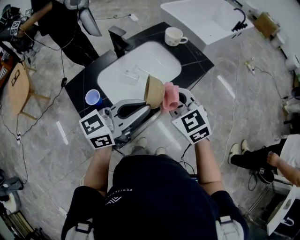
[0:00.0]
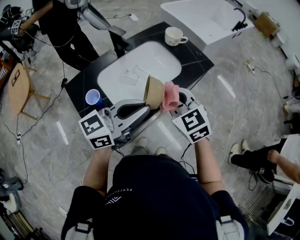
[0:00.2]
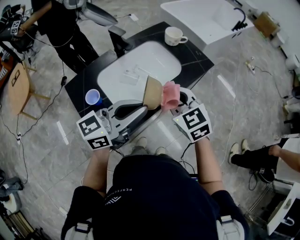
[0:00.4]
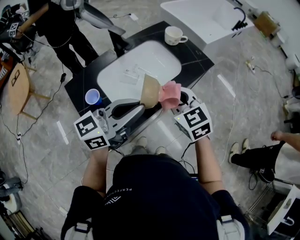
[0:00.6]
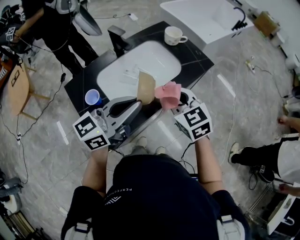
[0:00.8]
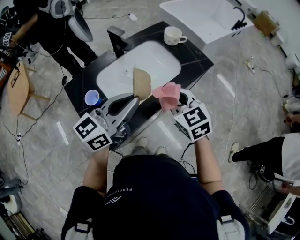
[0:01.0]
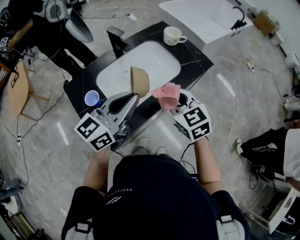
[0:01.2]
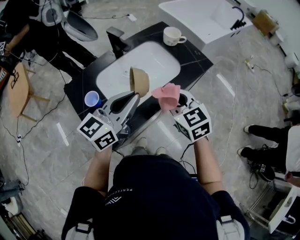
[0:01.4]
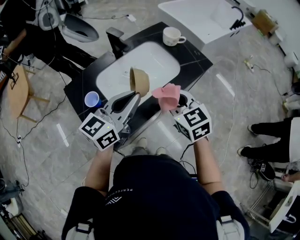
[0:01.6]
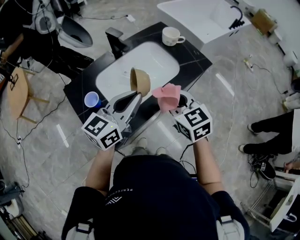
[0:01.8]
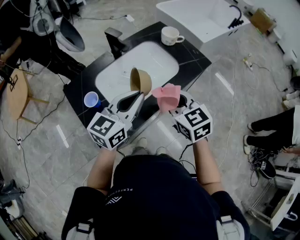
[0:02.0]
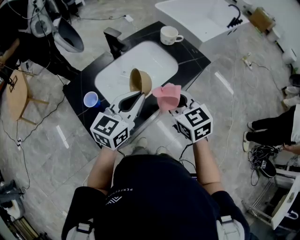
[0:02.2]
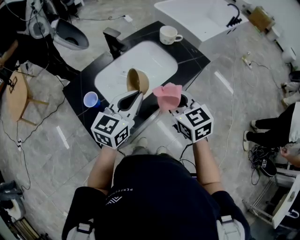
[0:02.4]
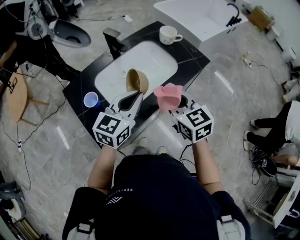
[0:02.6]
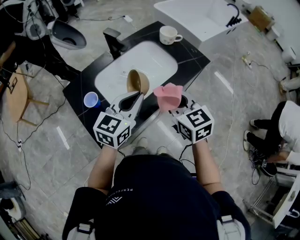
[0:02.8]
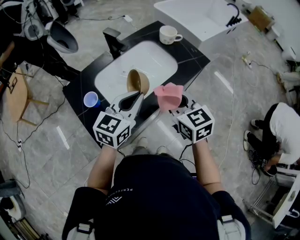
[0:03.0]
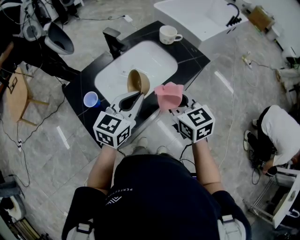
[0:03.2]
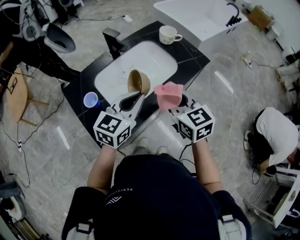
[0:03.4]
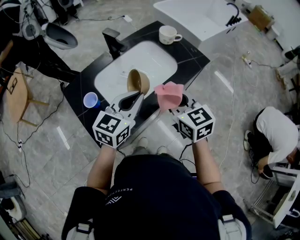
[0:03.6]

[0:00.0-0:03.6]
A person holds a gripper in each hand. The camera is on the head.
0:00.0 to 0:01.8: The left gripper changes place by about 5 cm, and rotates some 20 degrees.
0:01.8 to 0:03.6: The grippers move only a little.

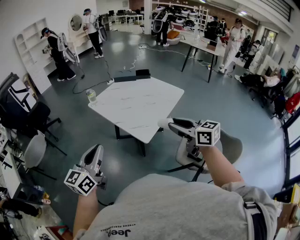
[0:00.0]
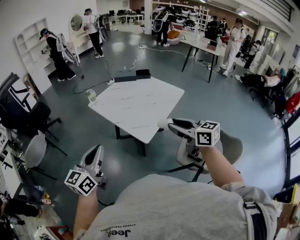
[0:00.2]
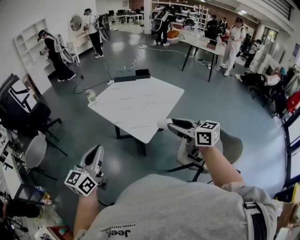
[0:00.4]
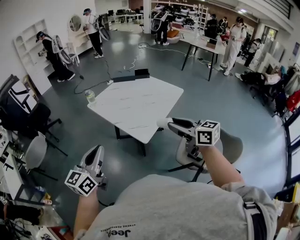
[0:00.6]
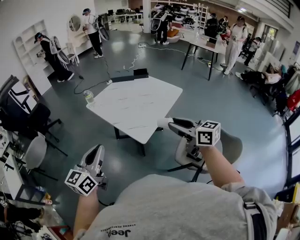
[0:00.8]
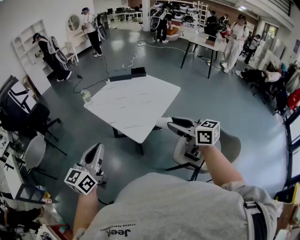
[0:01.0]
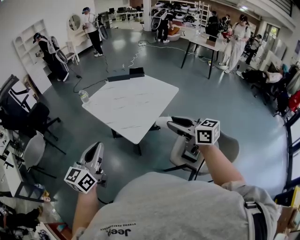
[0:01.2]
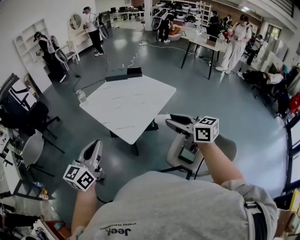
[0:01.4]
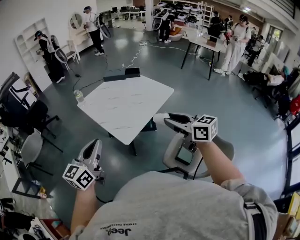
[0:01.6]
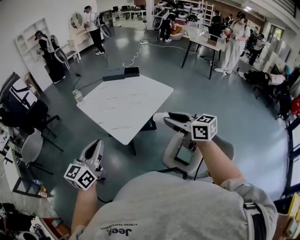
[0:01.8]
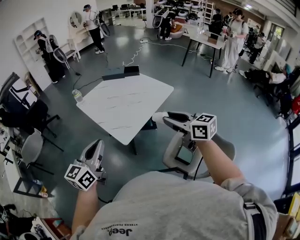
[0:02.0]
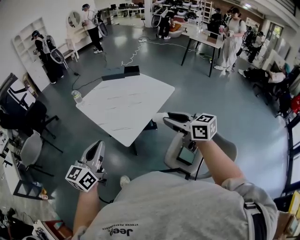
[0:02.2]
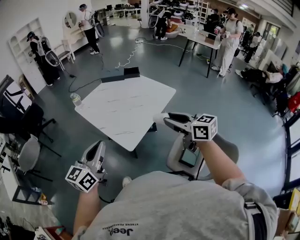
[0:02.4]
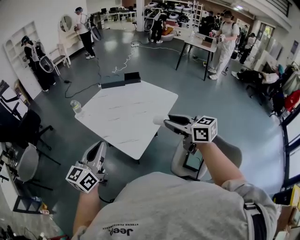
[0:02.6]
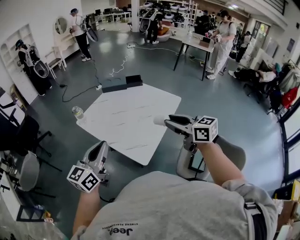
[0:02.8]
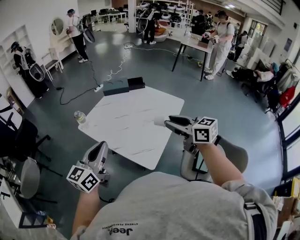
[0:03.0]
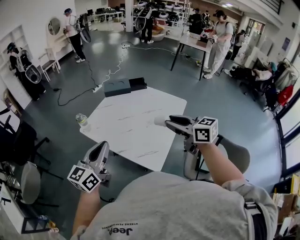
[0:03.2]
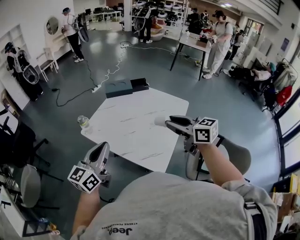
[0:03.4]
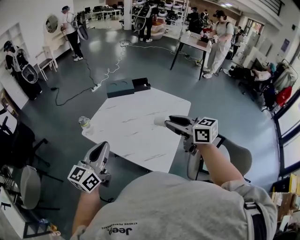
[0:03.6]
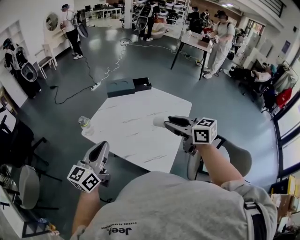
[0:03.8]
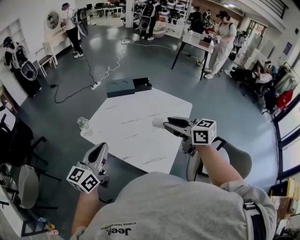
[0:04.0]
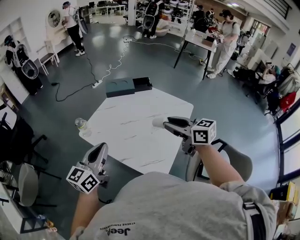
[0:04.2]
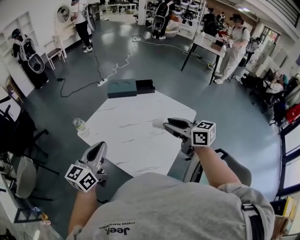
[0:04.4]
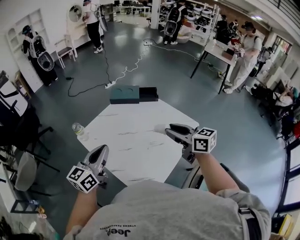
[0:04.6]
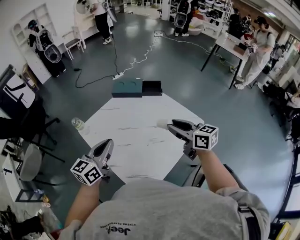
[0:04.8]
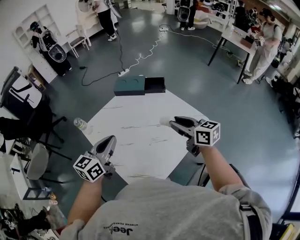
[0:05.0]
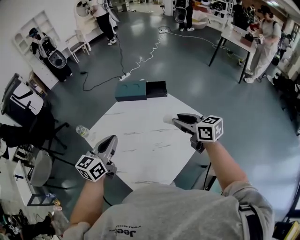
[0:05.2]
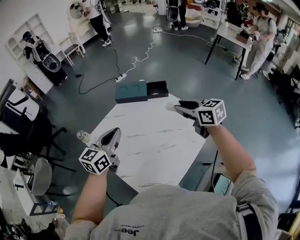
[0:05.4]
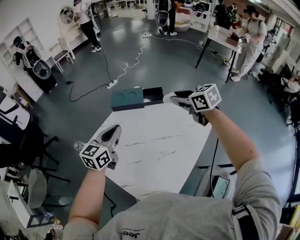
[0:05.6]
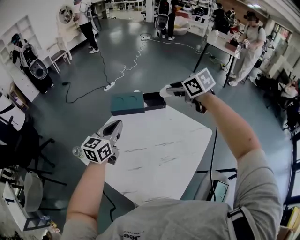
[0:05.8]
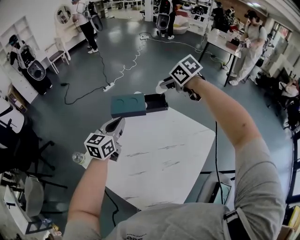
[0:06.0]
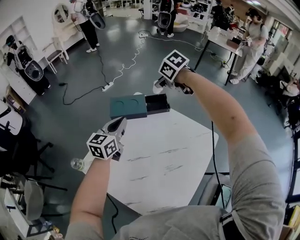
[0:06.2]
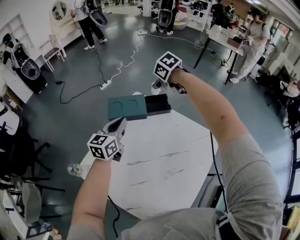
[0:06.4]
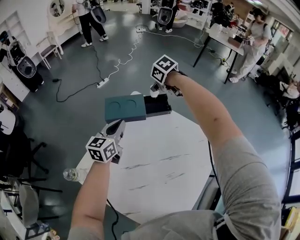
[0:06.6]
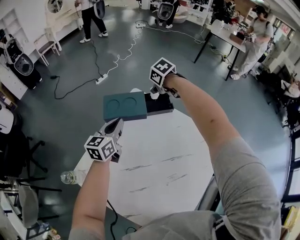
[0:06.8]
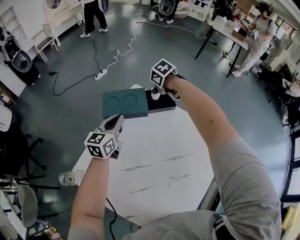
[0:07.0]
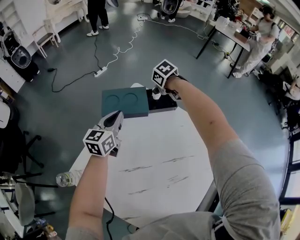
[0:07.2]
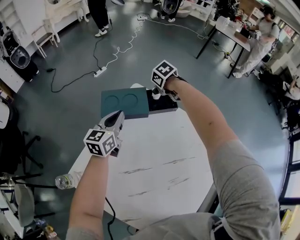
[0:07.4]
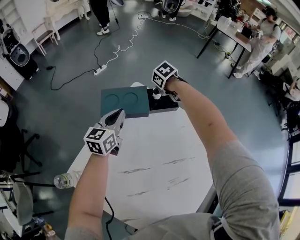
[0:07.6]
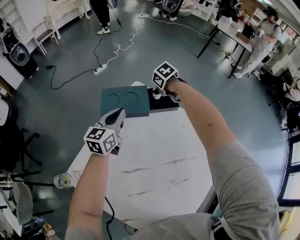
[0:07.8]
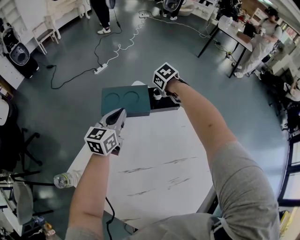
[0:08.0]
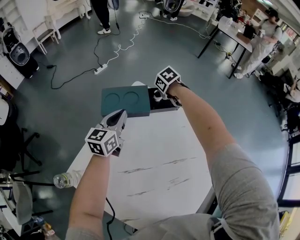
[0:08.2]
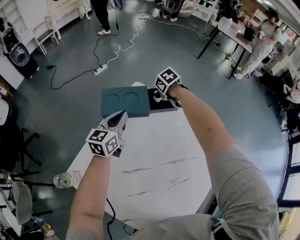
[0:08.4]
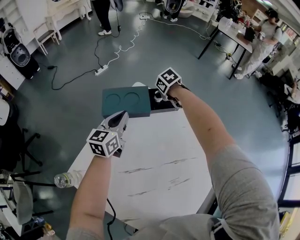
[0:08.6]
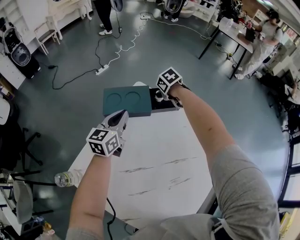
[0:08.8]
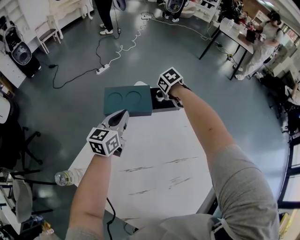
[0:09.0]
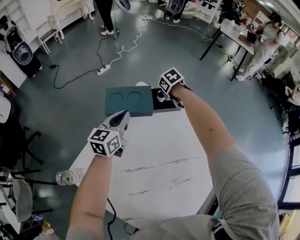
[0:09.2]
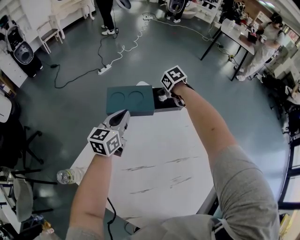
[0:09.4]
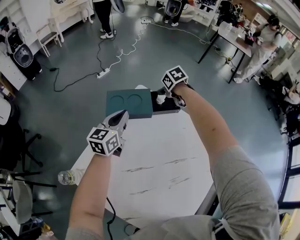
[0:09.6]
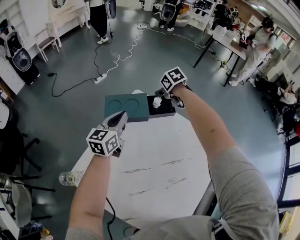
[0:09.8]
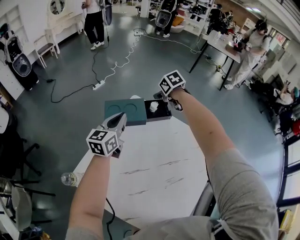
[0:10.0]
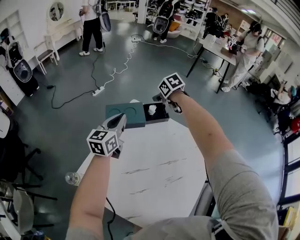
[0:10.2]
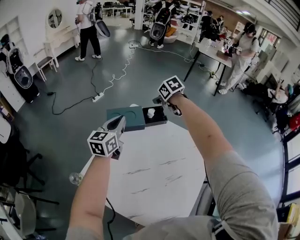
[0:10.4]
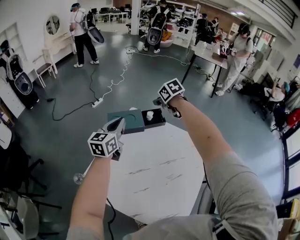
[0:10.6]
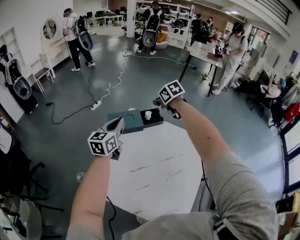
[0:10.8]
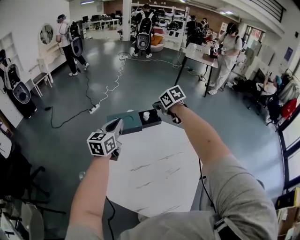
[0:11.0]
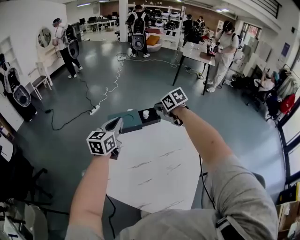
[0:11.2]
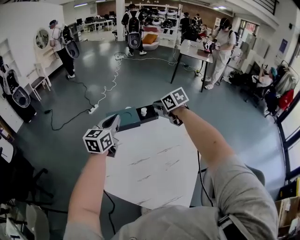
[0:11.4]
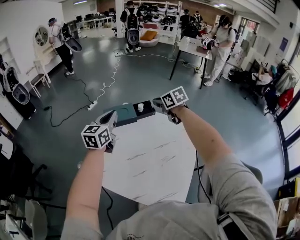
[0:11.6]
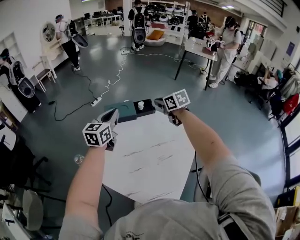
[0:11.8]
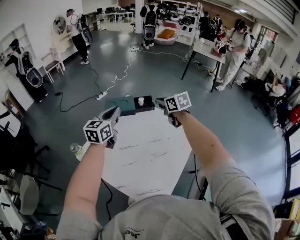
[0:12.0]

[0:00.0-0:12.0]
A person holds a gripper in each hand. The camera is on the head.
0:00.0 to 0:01.6: Both grippers travel together to the right, about 15 cm.
0:01.6 to 0:03.0: The grippers both shift forward and to the left by approximately 25 cm.
0:03.0 to 0:04.4: Both grippers travel together forward, approximately 15 cm.
0:04.4 to 0:06.0: The right gripper heads forward, covering about 40 cm, and tips its fingers downward by about 40 degrees. The left gripper moves forward and to the right, roughly 35 cm.
0:06.0 to 0:07.6: The right gripper is displaced downward and forward by approximately 35 cm, and changes its angle by approximately 20 degrees; the left gripper travels forward and downward by some 20 cm.
0:07.6 to 0:09.0: The grippers make only small movements.
0:09.0 to 0:10.4: The two grippers go about 15 cm upward.
0:10.4 to 0:12.0: Both grippers move backward and upward, some 20 cm. The right gripper swivels approximately 30 degrees, and closes its fingers.

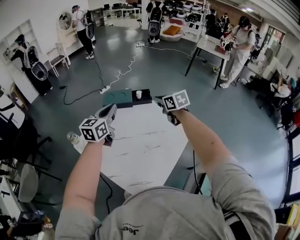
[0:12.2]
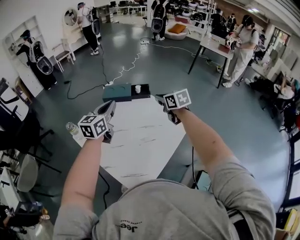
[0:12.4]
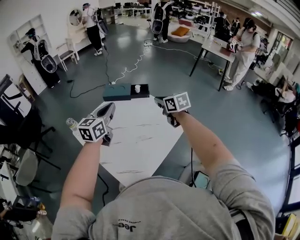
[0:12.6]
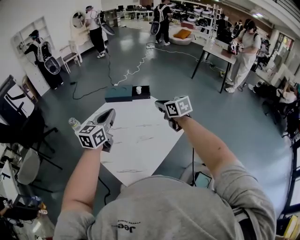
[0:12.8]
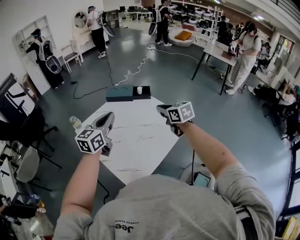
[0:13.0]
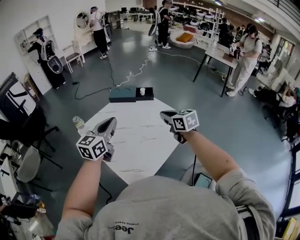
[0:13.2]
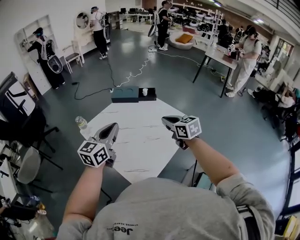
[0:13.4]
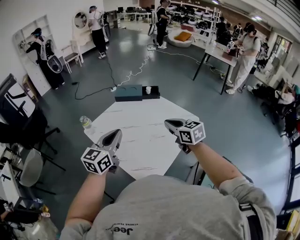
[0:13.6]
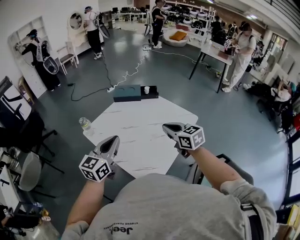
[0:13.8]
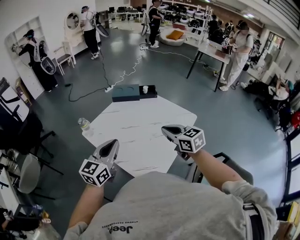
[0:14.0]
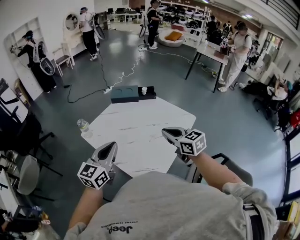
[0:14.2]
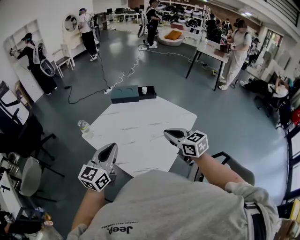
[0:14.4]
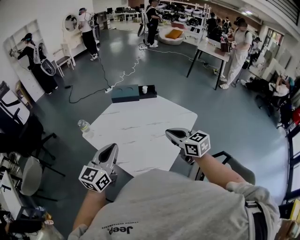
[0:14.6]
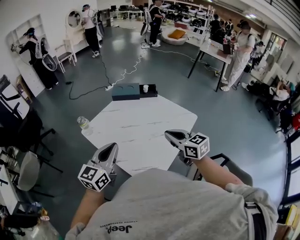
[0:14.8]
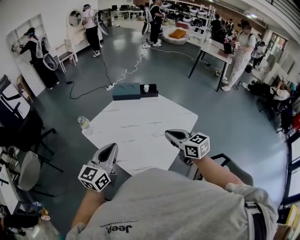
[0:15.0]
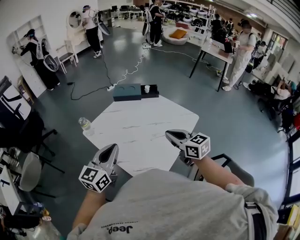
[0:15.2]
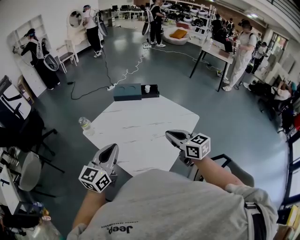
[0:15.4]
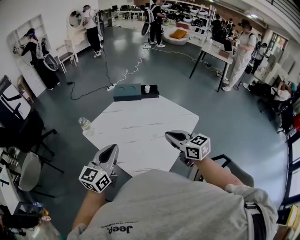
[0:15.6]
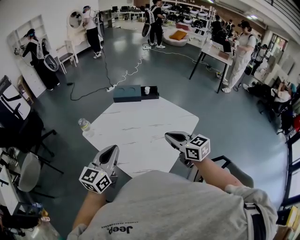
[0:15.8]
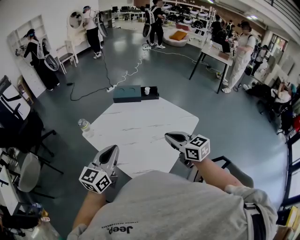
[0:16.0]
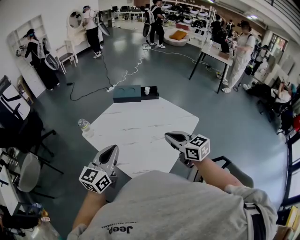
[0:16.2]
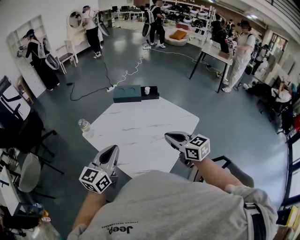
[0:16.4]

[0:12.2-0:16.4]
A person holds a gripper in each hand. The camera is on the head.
0:12.2 to 0:13.6: Both grippers move backward, approximately 25 cm.
0:13.6 to 0:15.0: The right gripper goes about 5 cm backward. The left gripper changes place by roughly 5 cm.
0:15.0 to 0:16.4: Both grippers stay put.

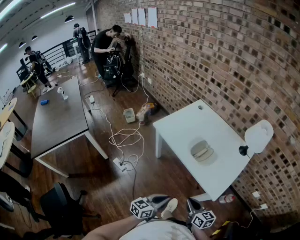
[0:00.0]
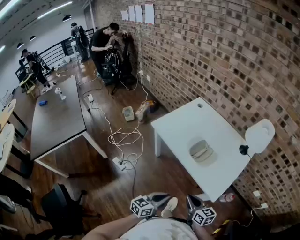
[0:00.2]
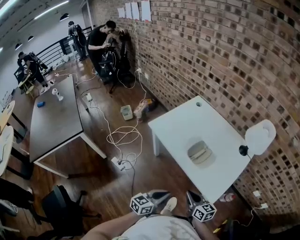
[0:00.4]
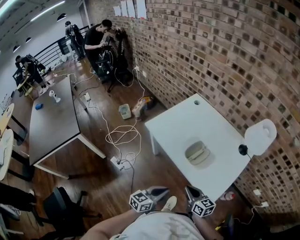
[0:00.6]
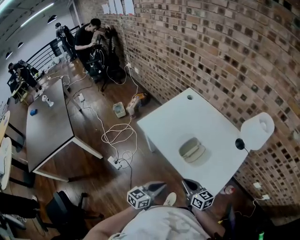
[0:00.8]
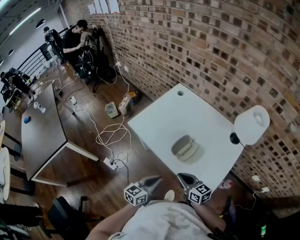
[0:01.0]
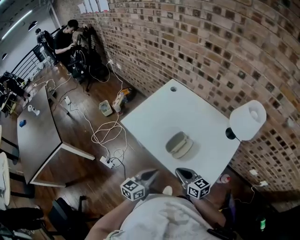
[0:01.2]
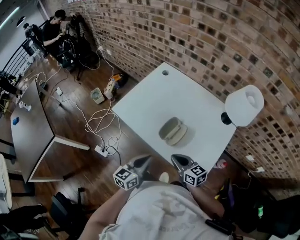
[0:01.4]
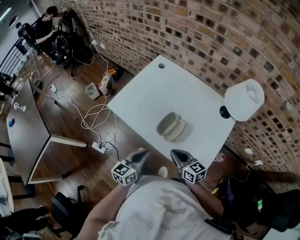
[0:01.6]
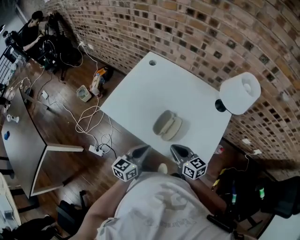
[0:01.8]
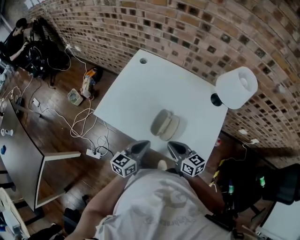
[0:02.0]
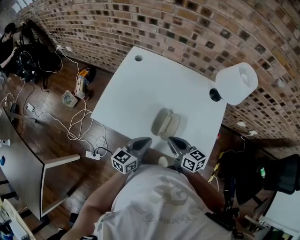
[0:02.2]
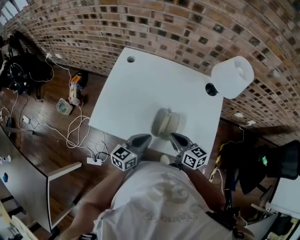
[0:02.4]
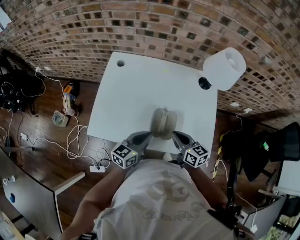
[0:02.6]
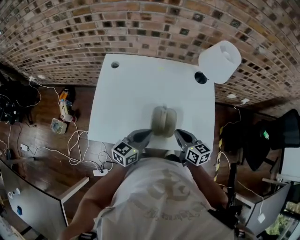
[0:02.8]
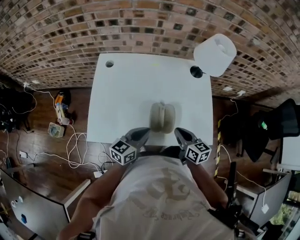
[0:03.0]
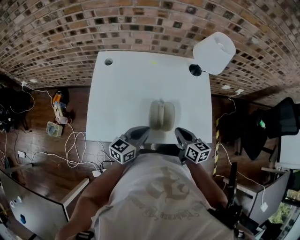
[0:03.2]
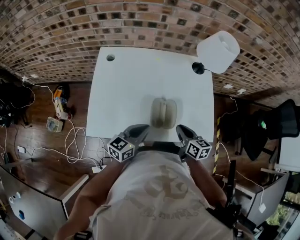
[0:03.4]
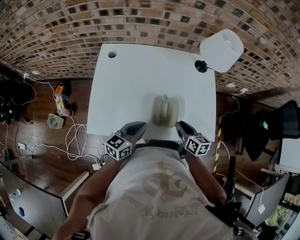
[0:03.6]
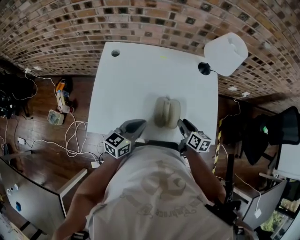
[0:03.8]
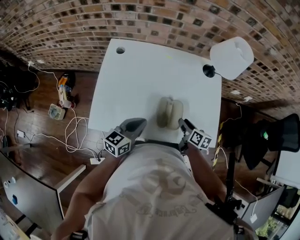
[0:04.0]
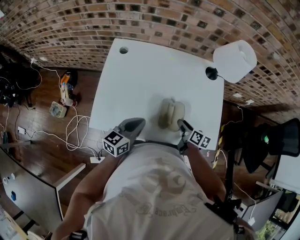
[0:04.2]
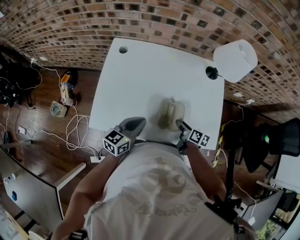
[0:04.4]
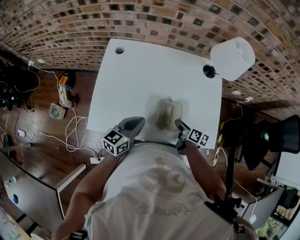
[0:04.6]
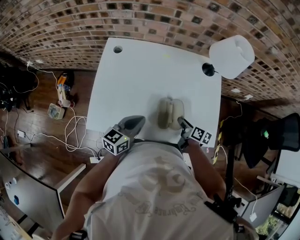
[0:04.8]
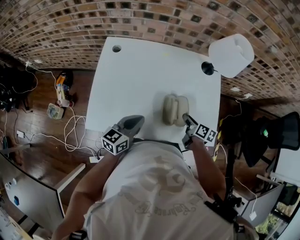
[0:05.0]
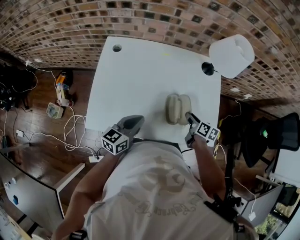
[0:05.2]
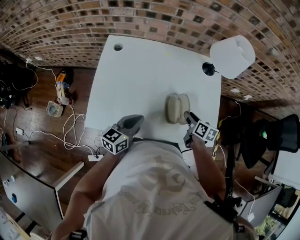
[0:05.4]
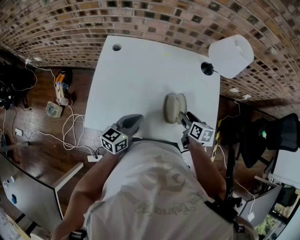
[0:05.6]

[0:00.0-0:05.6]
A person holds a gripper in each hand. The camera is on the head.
0:00.0 to 0:01.4: Both grippers move forward, about 25 cm.
0:01.4 to 0:02.8: The left gripper ends up approximately 15 cm from where it was, and turns by roughly 40 degrees; the right gripper shifts by approximately 10 cm, and swivels approximately 50 degrees.
0:02.8 to 0:04.2: The right gripper is displaced downward by roughly 10 cm, changes its angle by approximately 30 degrees, and opens, while the left gripper moves to the left, roughly 5 cm.
0:04.2 to 0:05.6: The right gripper shifts by some 5 cm.
